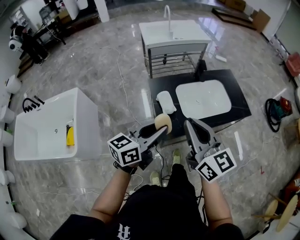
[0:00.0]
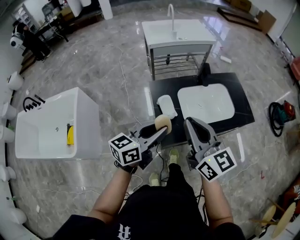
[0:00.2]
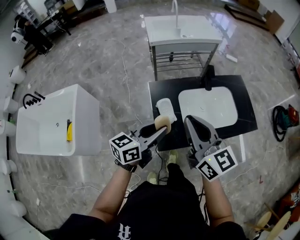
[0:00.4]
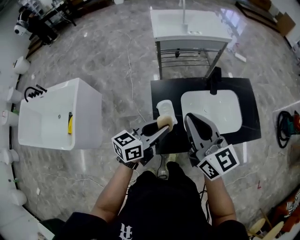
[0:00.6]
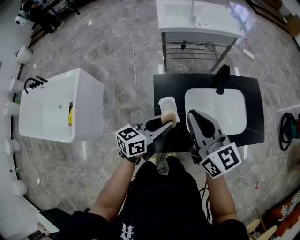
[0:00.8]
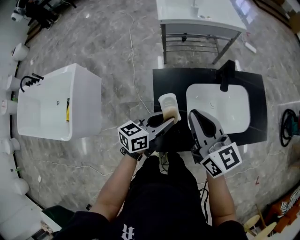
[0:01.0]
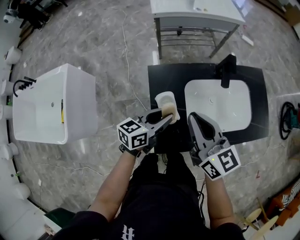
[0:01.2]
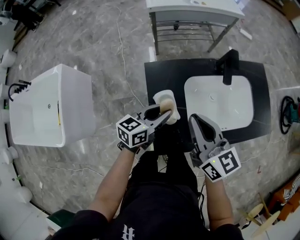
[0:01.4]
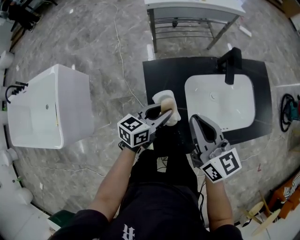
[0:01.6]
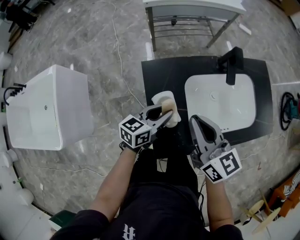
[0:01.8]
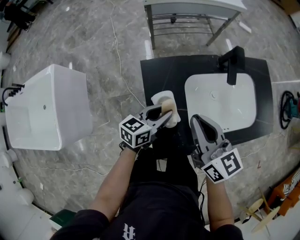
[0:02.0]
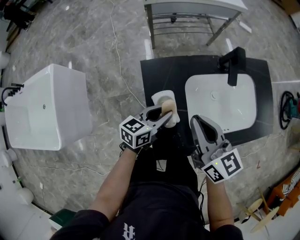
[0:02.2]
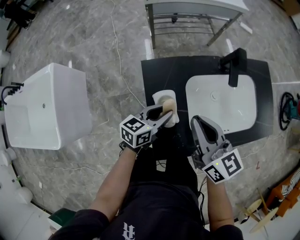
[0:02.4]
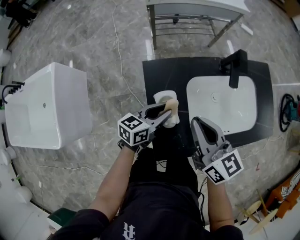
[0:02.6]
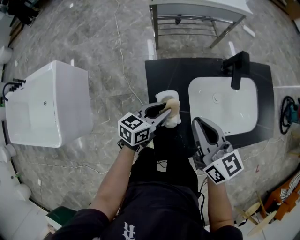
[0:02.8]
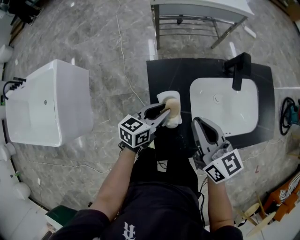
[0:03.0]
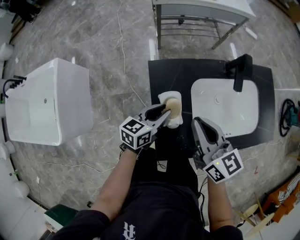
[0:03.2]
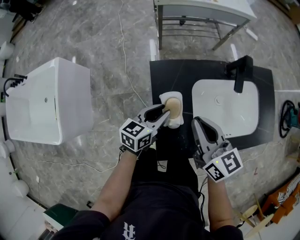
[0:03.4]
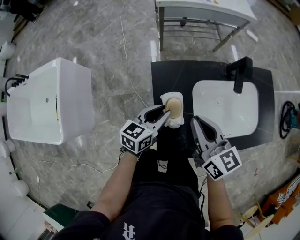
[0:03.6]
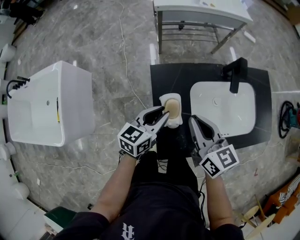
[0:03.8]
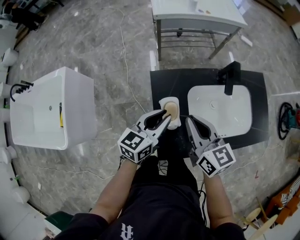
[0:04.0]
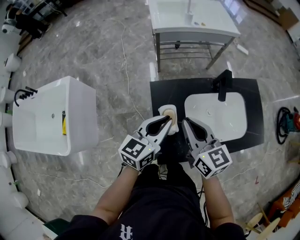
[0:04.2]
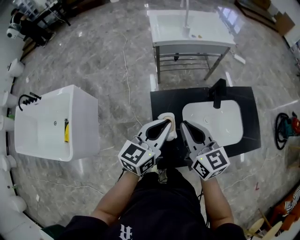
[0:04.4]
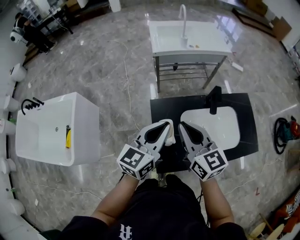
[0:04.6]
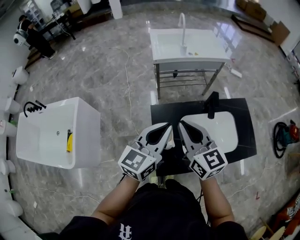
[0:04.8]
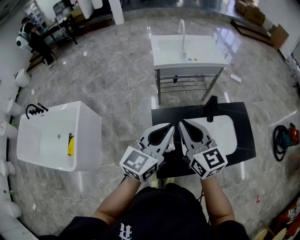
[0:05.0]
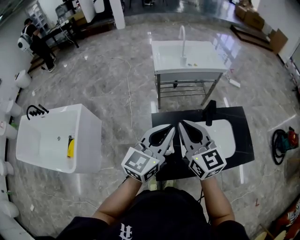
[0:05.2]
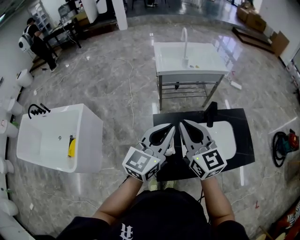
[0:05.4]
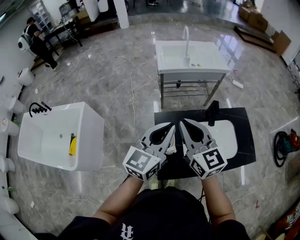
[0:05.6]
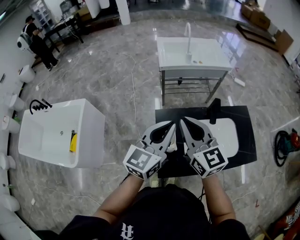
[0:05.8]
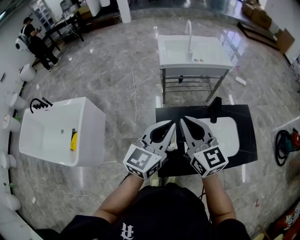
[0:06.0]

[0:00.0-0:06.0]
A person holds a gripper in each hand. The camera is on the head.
0:00.0 to 0:01.6: The left gripper heads downward and forward, covering roughly 35 cm. The right gripper travels forward and downward by some 30 cm.
0:01.6 to 0:03.0: There are only small adjustments of the grippers.
0:03.0 to 0:04.4: The right gripper is displaced upward by approximately 10 cm, while the left gripper heads upward, covering some 25 cm, and swivels some 20 degrees.
0:04.4 to 0:06.0: The grippers both shift upward by about 10 cm.

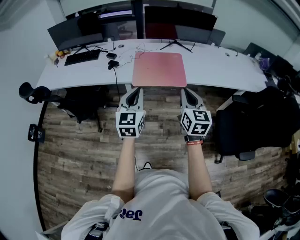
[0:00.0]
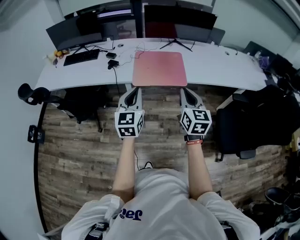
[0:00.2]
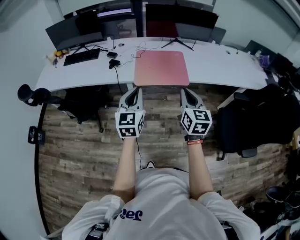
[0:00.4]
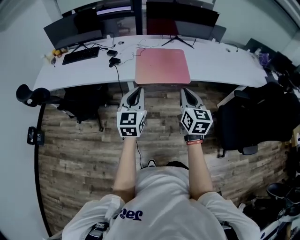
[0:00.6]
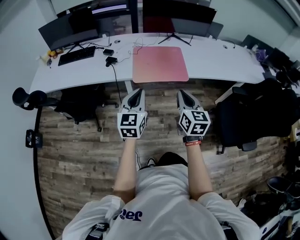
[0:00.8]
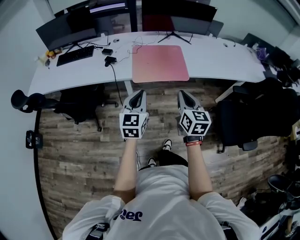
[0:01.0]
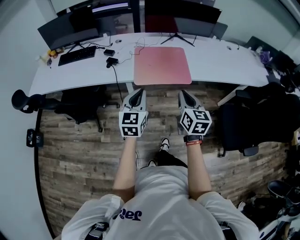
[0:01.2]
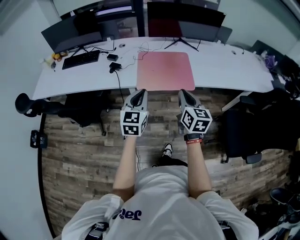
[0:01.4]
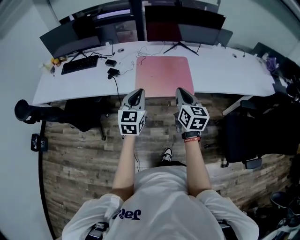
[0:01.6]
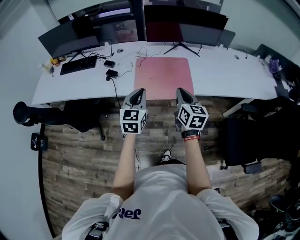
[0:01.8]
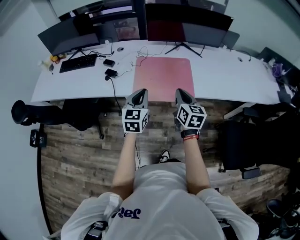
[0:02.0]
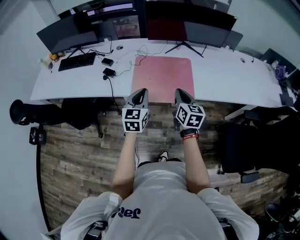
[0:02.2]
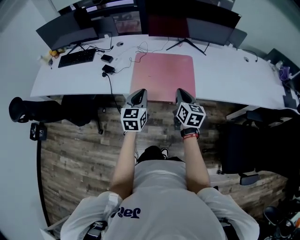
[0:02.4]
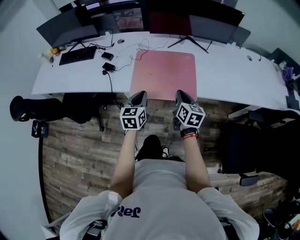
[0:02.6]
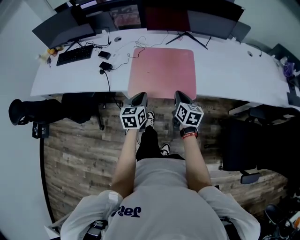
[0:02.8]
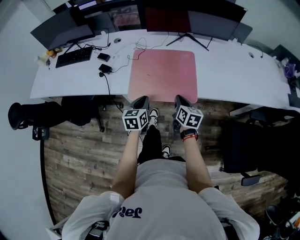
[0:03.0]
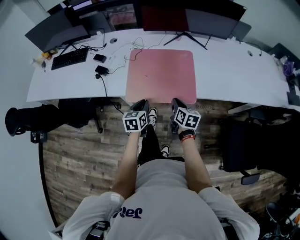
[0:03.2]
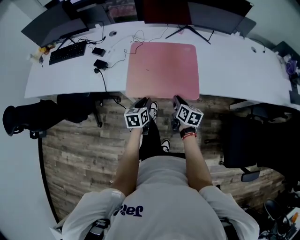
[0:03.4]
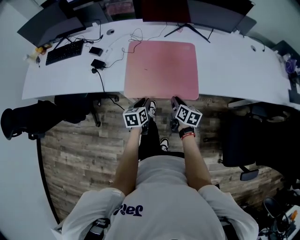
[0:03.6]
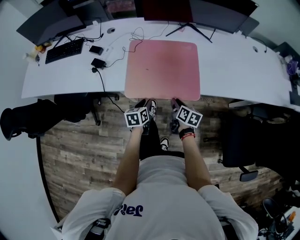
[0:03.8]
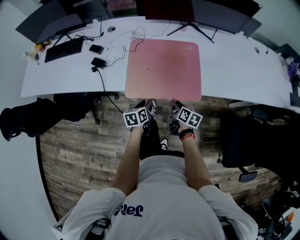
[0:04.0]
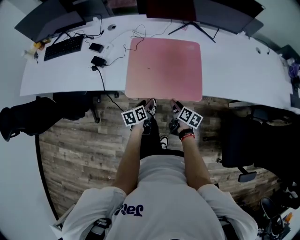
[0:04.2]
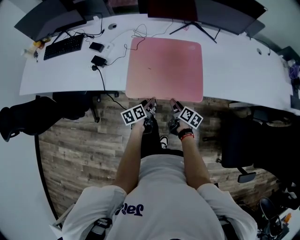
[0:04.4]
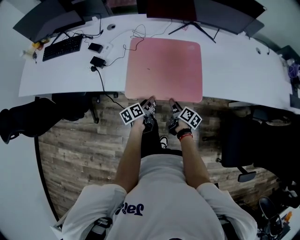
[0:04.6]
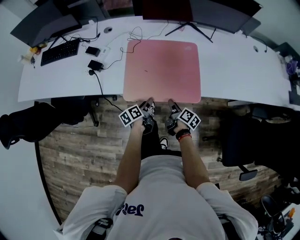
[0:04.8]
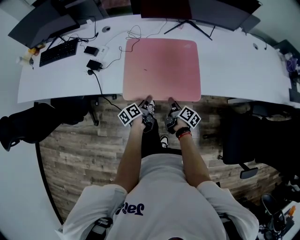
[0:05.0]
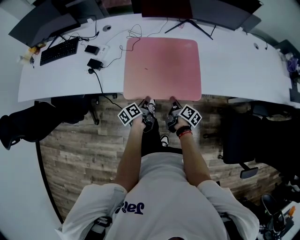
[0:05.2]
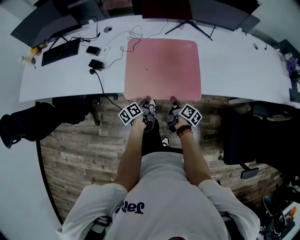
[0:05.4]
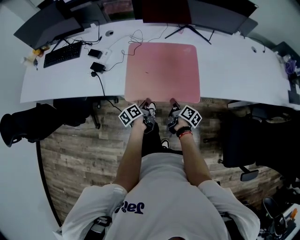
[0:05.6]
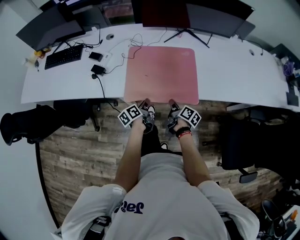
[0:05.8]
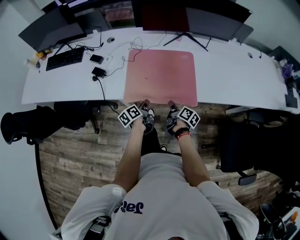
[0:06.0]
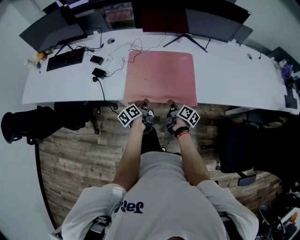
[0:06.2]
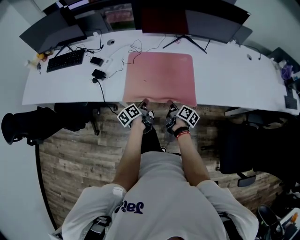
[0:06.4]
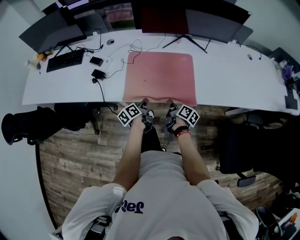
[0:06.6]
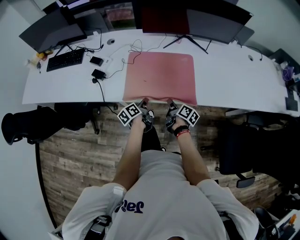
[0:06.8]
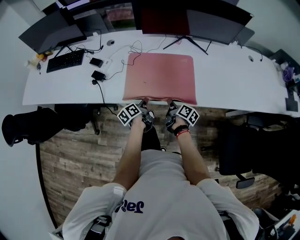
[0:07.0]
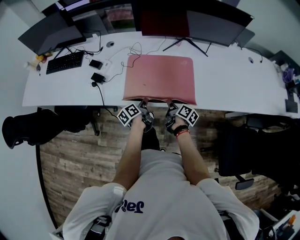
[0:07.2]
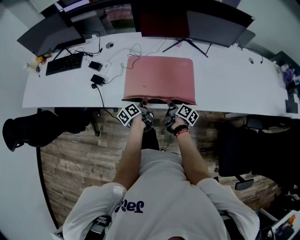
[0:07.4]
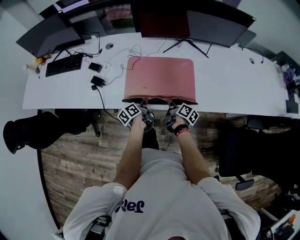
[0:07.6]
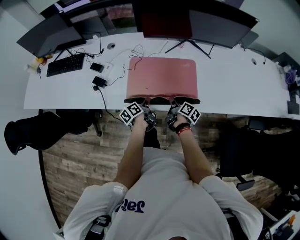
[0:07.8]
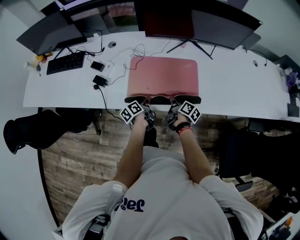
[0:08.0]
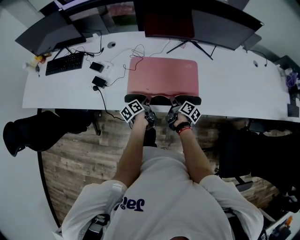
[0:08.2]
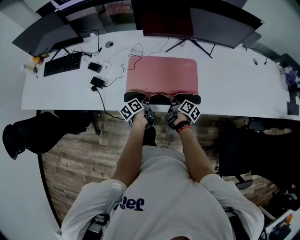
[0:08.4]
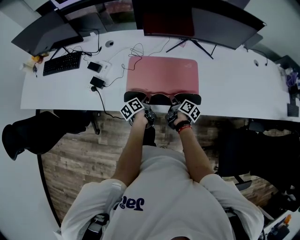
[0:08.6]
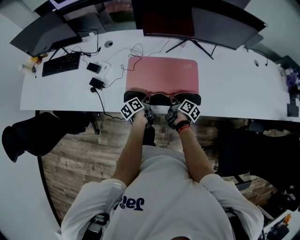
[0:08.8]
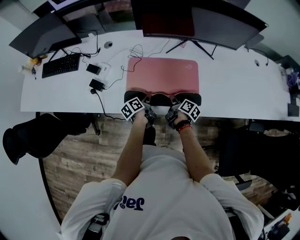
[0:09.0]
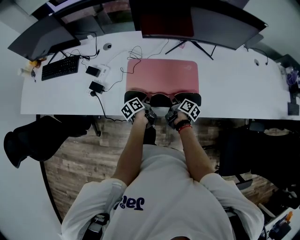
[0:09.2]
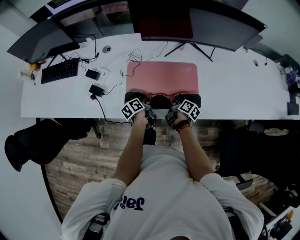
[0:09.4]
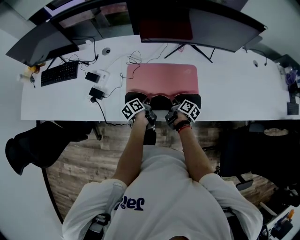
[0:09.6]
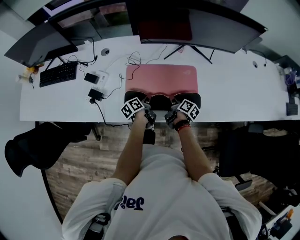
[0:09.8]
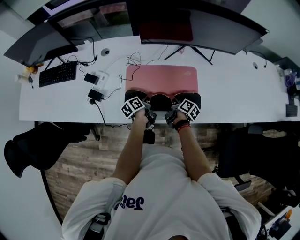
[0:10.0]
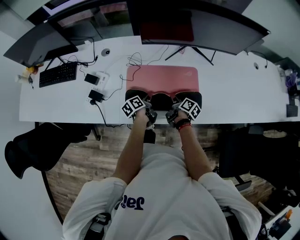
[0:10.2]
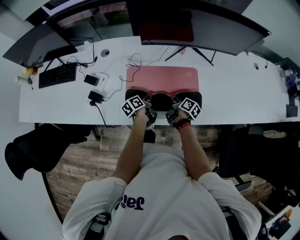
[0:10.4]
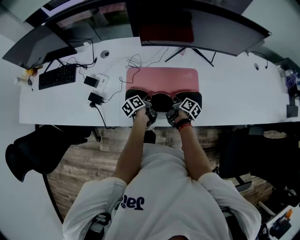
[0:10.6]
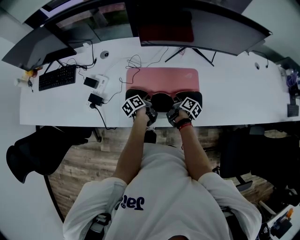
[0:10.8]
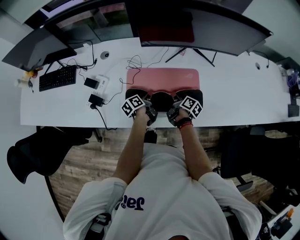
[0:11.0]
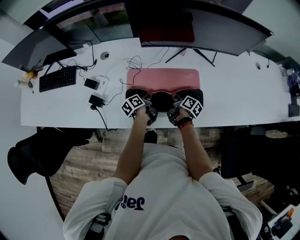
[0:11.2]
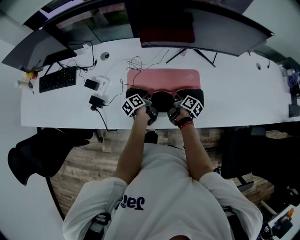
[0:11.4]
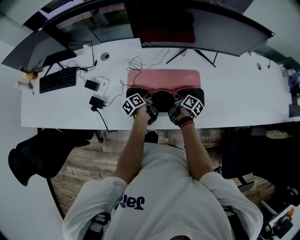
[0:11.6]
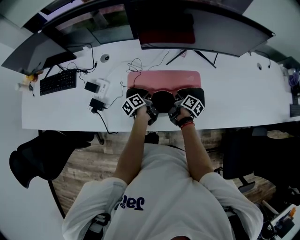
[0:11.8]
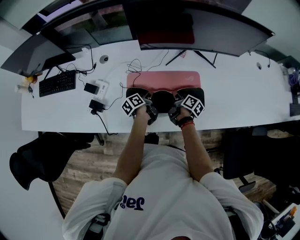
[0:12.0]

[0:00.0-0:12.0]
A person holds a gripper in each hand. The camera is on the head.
0:00.0 to 0:01.6: The two grippers go about 15 cm forward.
0:01.6 to 0:03.0: The grippers both shift downward and forward by some 25 cm. The right gripper turns by about 20 degrees; the left gripper changes its angle by approximately 30 degrees.
0:03.0 to 0:04.4: Both grippers travel together downward, some 15 cm. The left gripper swivels roughly 40 degrees, and opens up, while the right gripper rotates some 30 degrees, and opens its fingers.
0:04.4 to 0:06.0: The left gripper moves about 5 cm, and closes, while the right gripper closes up.
0:06.0 to 0:07.6: The two grippers go approximately 10 cm forward.
0:07.6 to 0:09.0: The grippers both shift forward by about 5 cm.
0:09.0 to 0:10.4: The grippers both shift forward by approximately 10 cm.
0:10.4 to 0:12.0: The two grippers go about 5 cm forward.

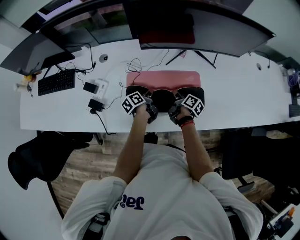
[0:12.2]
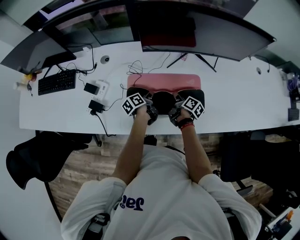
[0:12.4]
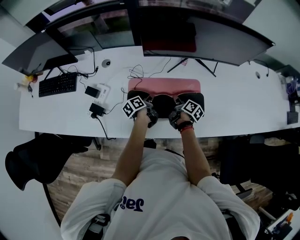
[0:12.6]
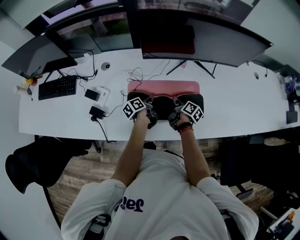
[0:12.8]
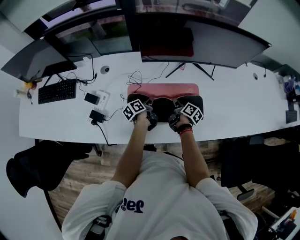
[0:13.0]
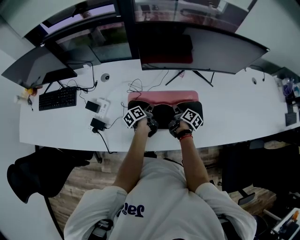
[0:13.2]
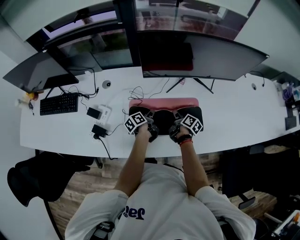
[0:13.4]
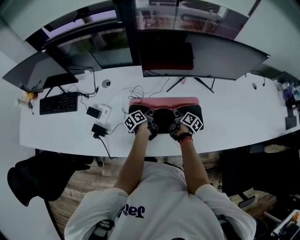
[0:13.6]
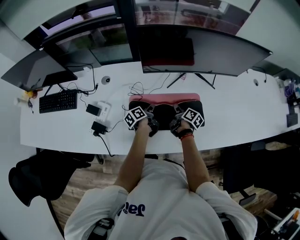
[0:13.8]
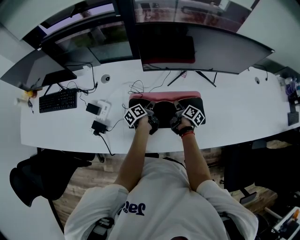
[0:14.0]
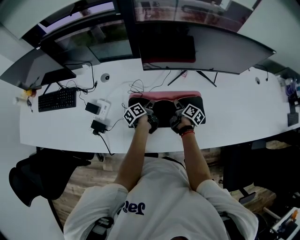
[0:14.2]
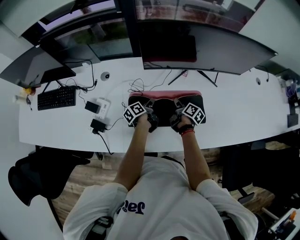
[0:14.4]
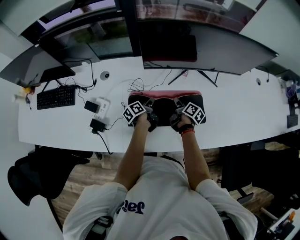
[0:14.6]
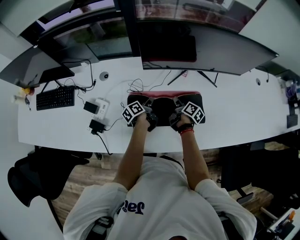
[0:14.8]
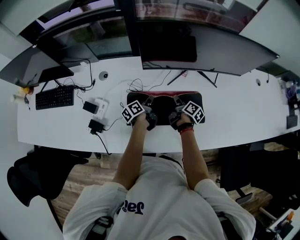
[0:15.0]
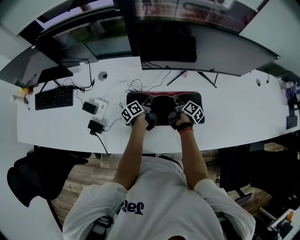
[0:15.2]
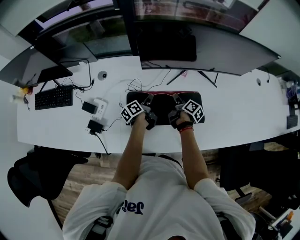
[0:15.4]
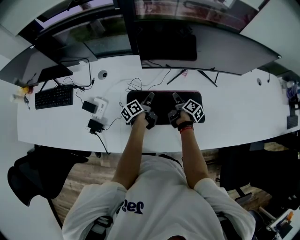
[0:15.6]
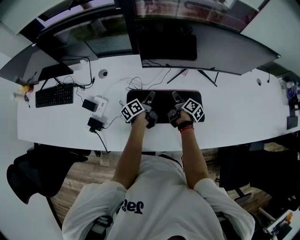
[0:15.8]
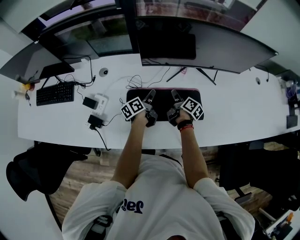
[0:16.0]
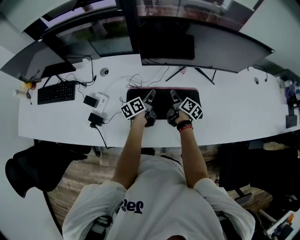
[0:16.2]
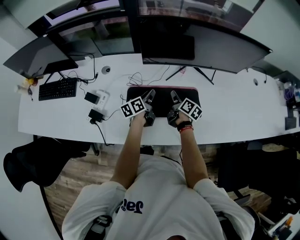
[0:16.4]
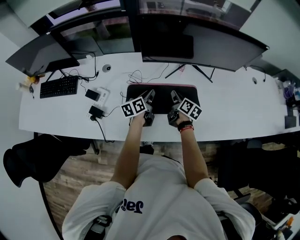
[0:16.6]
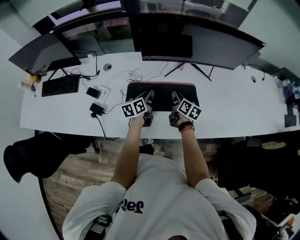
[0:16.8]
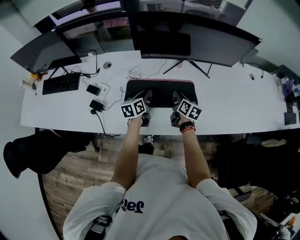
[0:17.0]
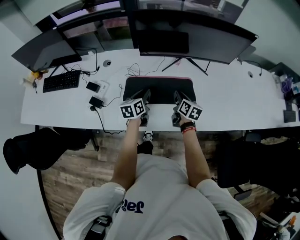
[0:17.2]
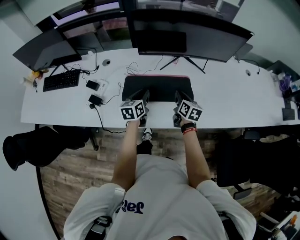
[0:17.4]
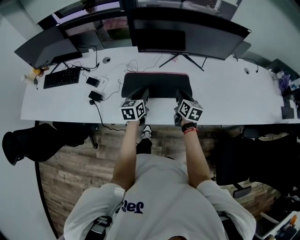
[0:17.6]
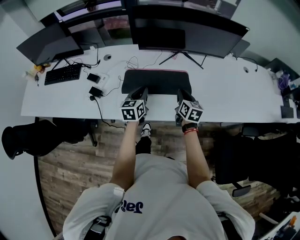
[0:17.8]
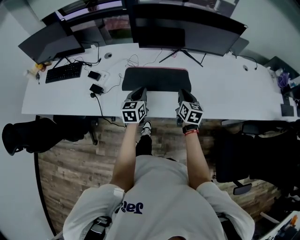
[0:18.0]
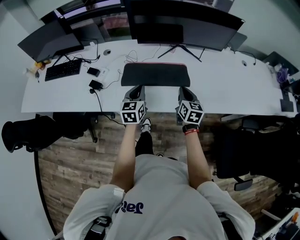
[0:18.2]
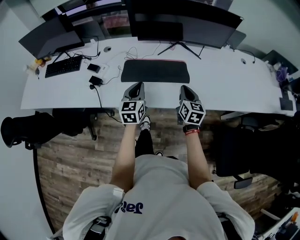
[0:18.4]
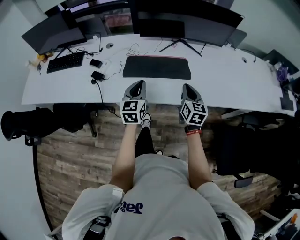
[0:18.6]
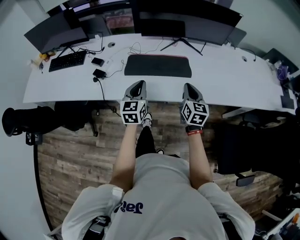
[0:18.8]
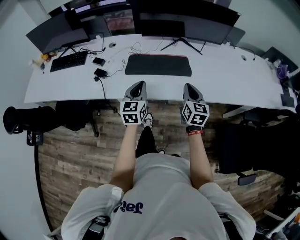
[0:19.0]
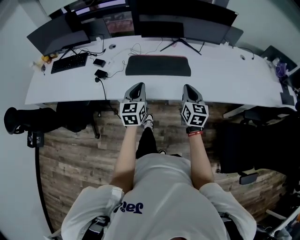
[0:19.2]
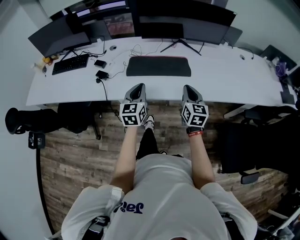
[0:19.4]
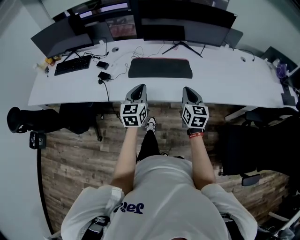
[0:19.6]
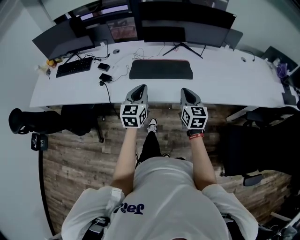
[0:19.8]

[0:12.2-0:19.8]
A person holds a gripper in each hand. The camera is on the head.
0:12.2 to 0:13.8: Both grippers move forward, roughly 5 cm.
0:13.8 to 0:15.2: The grippers stay close to where they were, moving slightly.
0:15.2 to 0:16.8: Both grippers move backward and upward, about 15 cm. The right gripper turns by approximately 30 degrees, while the left gripper turns by roughly 30 degrees.
0:16.8 to 0:18.2: Both grippers move backward and upward, about 20 cm. The right gripper changes its angle by roughly 30 degrees. Meanwhile the left gripper turns by about 40 degrees.
0:18.2 to 0:19.8: The right gripper shifts roughly 15 cm backward. Meanwhile the left gripper shifts about 15 cm backward and upward.
